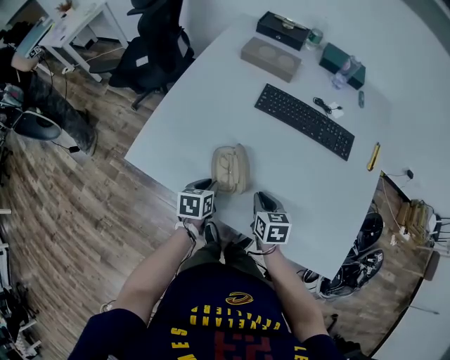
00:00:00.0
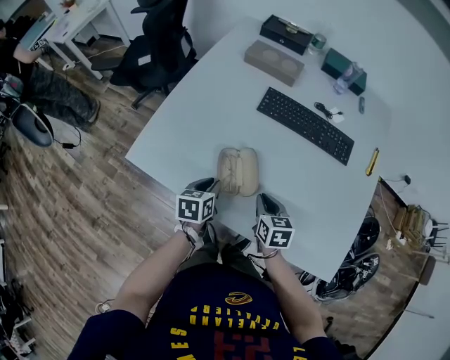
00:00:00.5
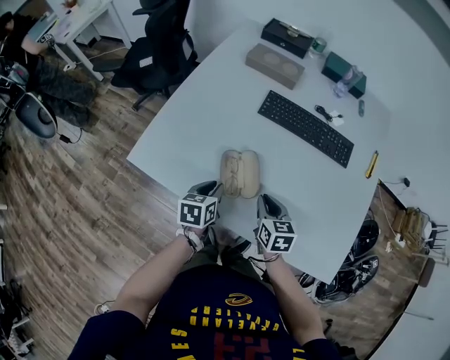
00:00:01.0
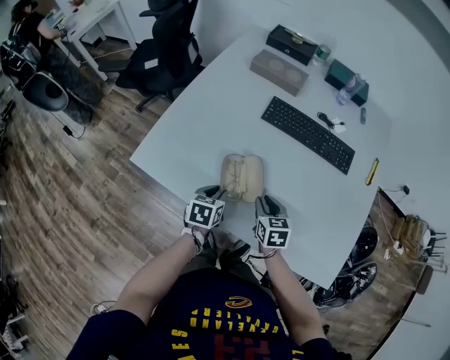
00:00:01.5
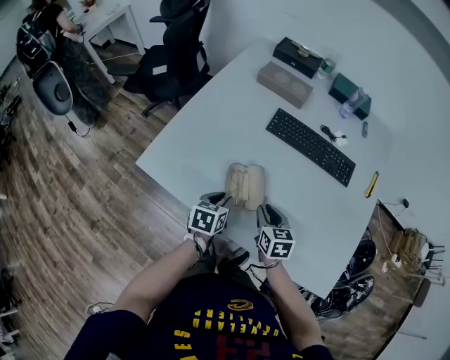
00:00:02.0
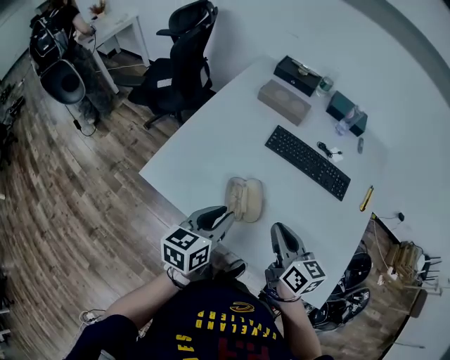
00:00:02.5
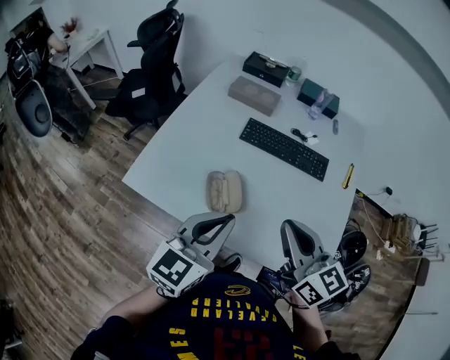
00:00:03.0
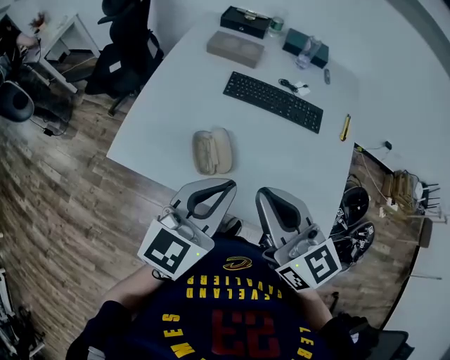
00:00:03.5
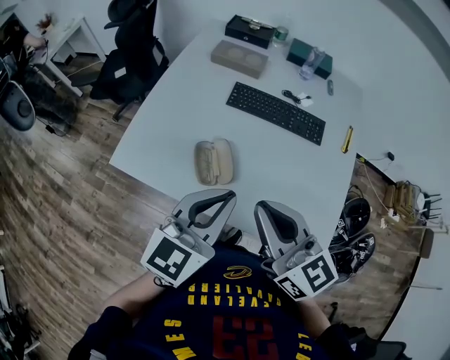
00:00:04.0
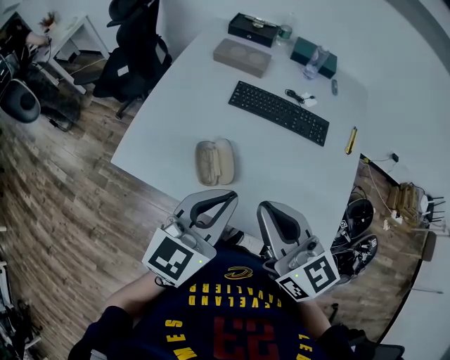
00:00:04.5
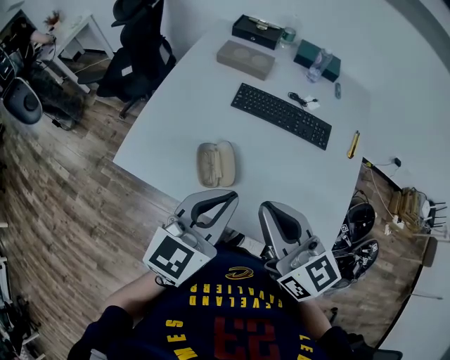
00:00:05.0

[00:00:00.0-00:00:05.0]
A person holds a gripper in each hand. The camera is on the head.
00:00:00.0 to 00:00:02.5: The grippers both shift upward by some 20 cm. The left gripper changes its angle by approximately 30 degrees. The right gripper changes its angle by about 30 degrees.
00:00:02.5 to 00:00:05.0: The right gripper goes approximately 15 cm upward and backward, while the left gripper heads upward and to the right, covering roughly 15 cm, changes its angle by some 30 degrees, and closes its fingers.

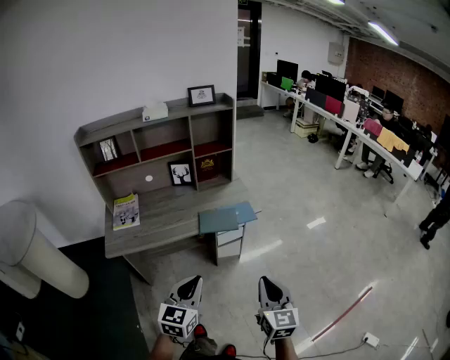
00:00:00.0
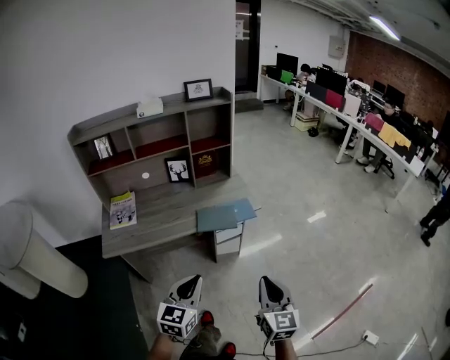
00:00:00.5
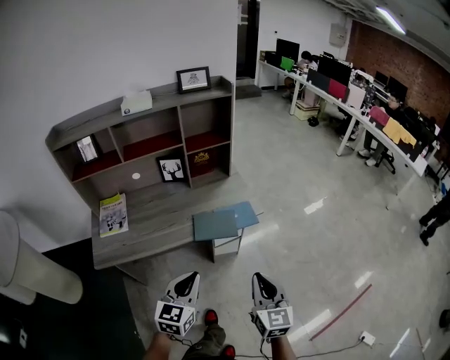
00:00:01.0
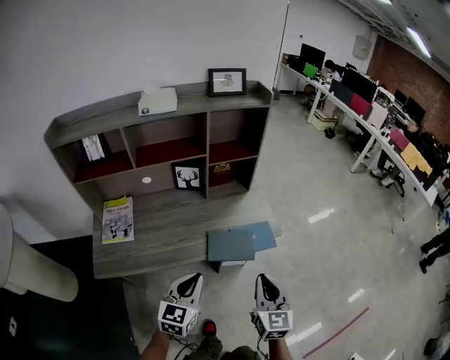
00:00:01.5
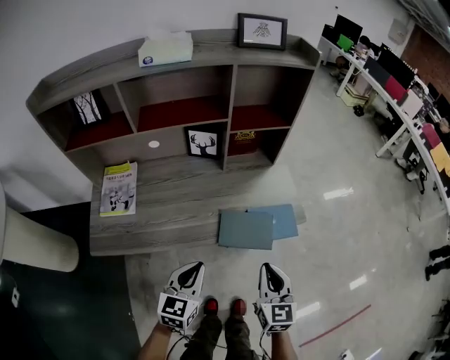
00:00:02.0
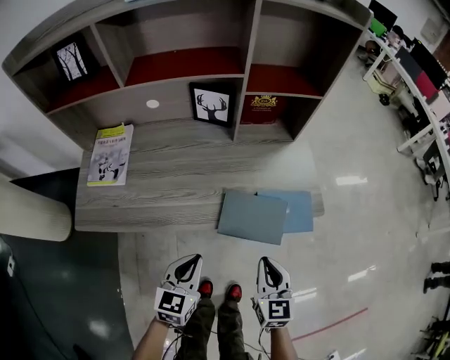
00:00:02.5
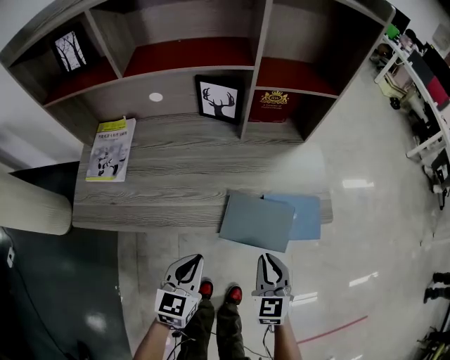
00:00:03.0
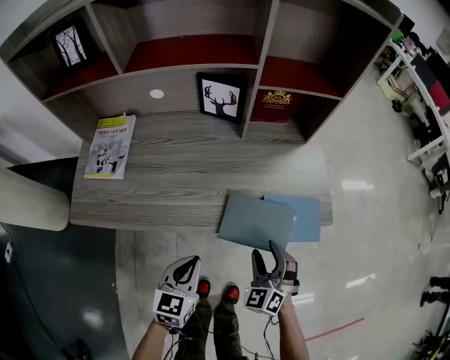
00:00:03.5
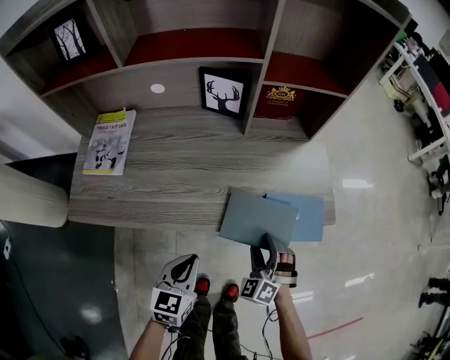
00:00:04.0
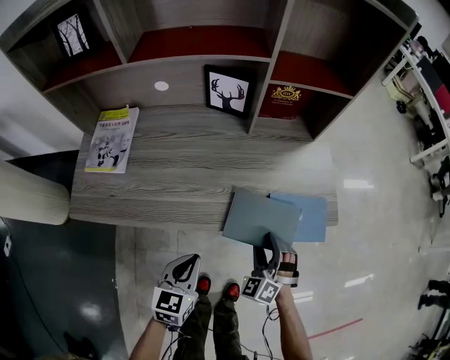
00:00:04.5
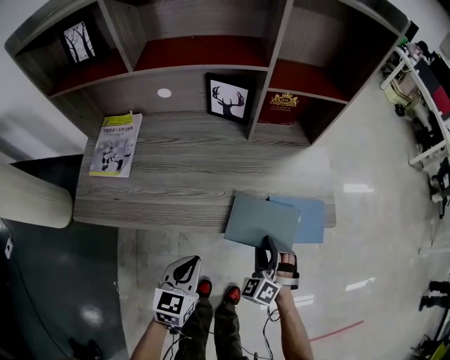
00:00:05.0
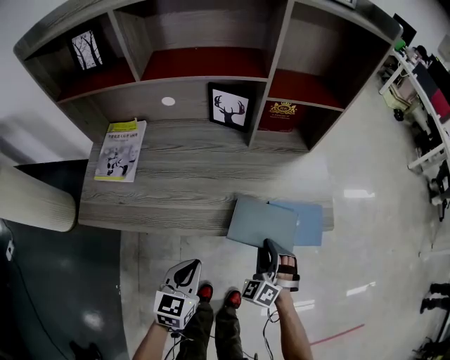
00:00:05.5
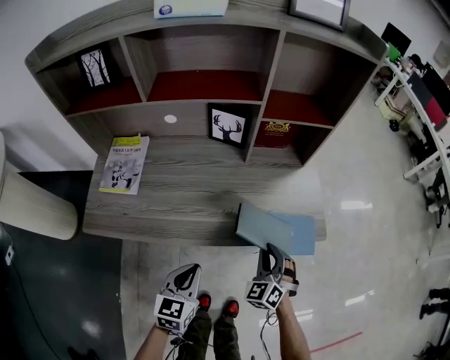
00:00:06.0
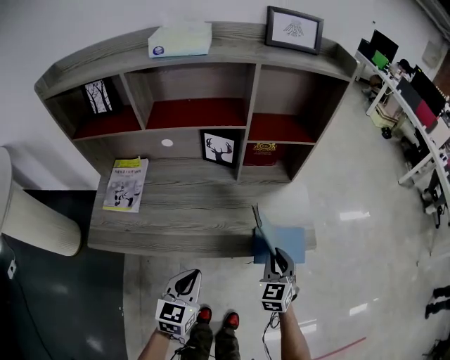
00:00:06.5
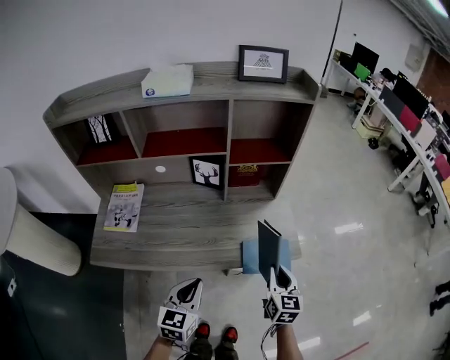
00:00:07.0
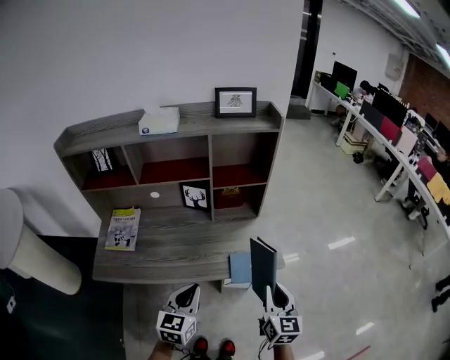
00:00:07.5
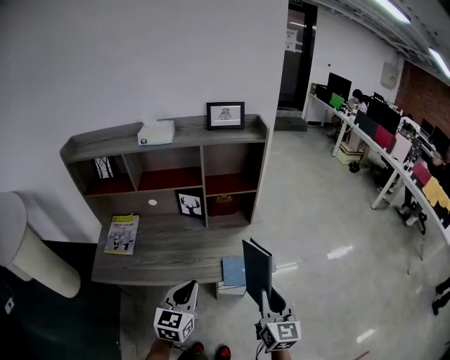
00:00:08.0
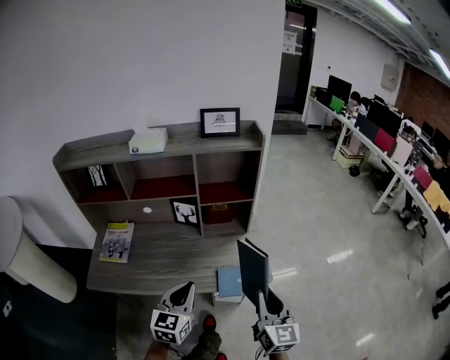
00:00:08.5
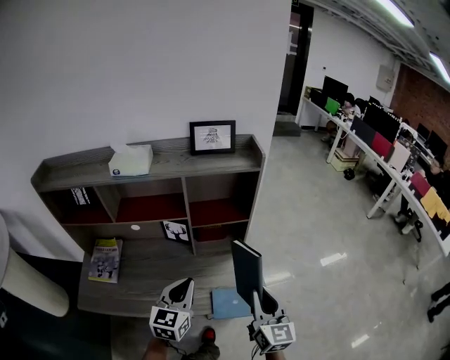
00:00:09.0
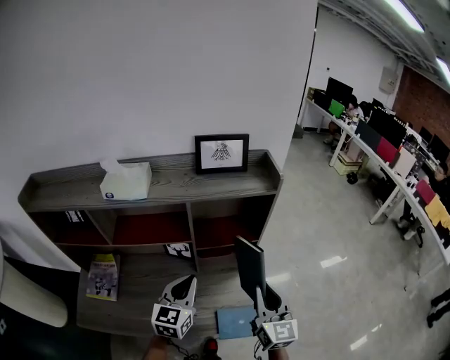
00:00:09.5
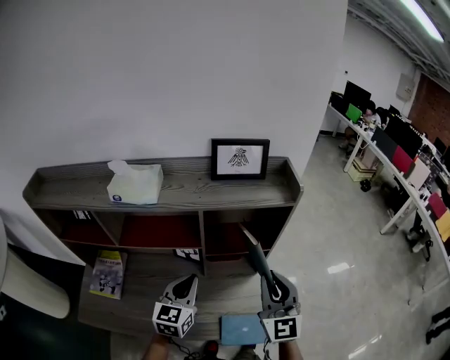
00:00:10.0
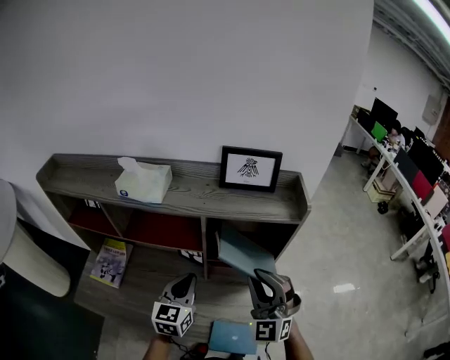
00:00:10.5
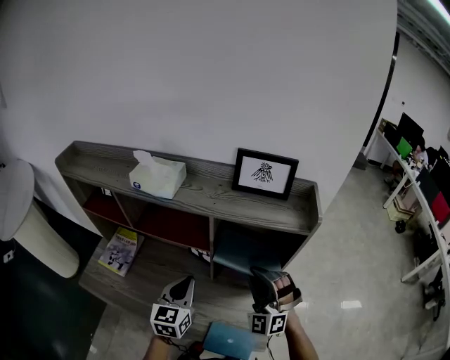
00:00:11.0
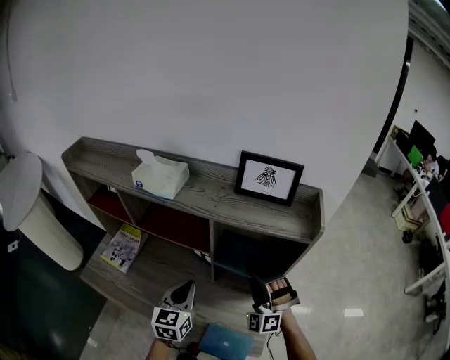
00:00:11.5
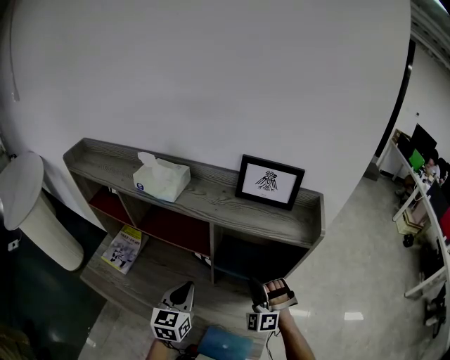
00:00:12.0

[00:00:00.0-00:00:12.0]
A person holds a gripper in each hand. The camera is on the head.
00:00:00.0 to 00:00:02.0: The two grippers go roughly 30 cm forward and downward.
00:00:02.0 to 00:00:04.0: Both grippers travel together downward, about 20 cm. The right gripper rotates around the line of its fingers by about 60 degrees, counterclockwise from behind, and opens its fingers.
00:00:04.0 to 00:00:06.0: Both grippers move upward, some 5 cm. The right gripper closes.
00:00:06.0 to 00:00:08.0: The grippers both shift upward and to the right by some 30 cm. The right gripper rotates around the line of its fingers by some 50 degrees, clockwise from behind.
00:00:08.0 to 00:00:10.0: Both grippers travel together forward, approximately 30 cm. The right gripper swivels roughly 30 degrees.
00:00:10.0 to 00:00:12.0: The right gripper moves downward and forward, some 15 cm, and twists roughly 60 degrees counterclockwise, seen from behind, while the left gripper turns by roughly 30 degrees.

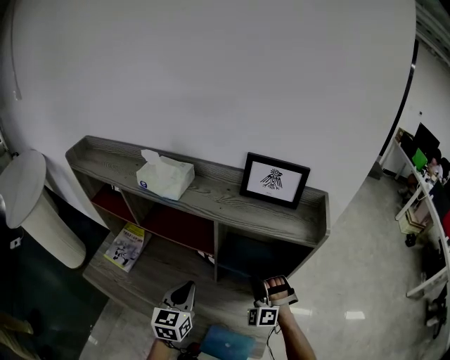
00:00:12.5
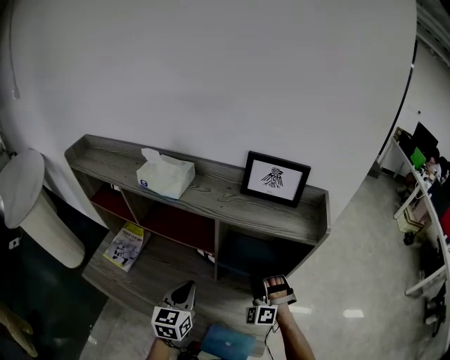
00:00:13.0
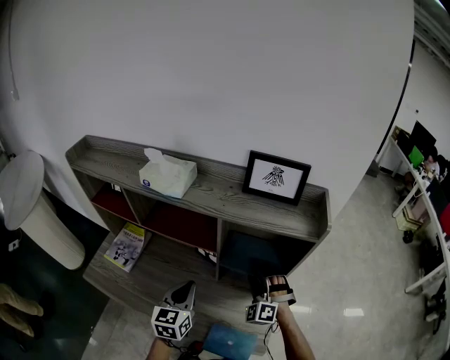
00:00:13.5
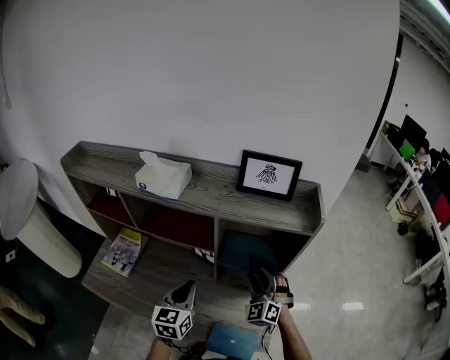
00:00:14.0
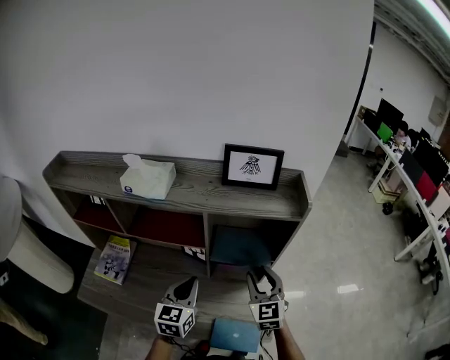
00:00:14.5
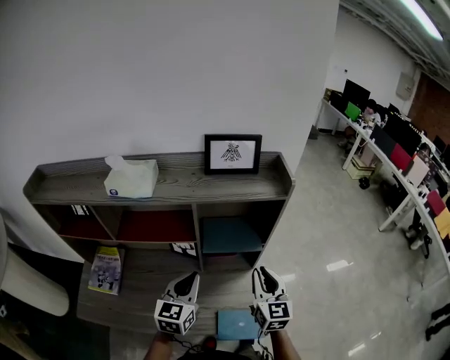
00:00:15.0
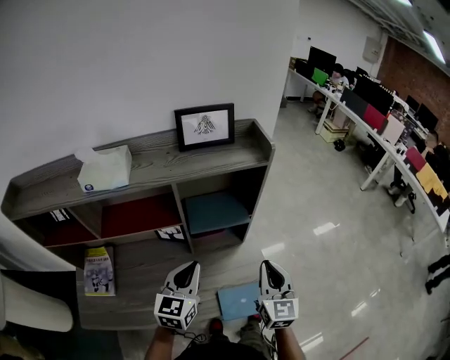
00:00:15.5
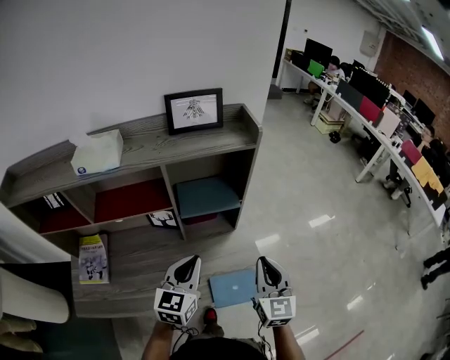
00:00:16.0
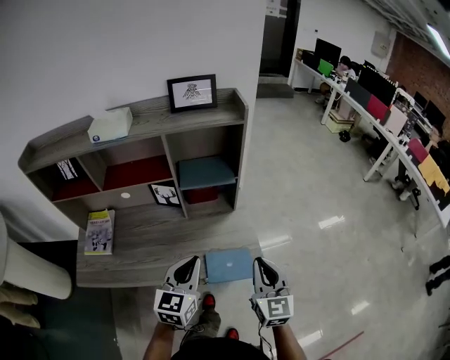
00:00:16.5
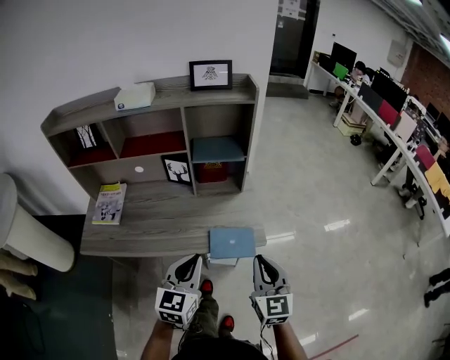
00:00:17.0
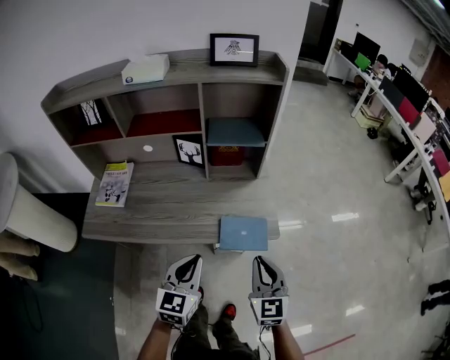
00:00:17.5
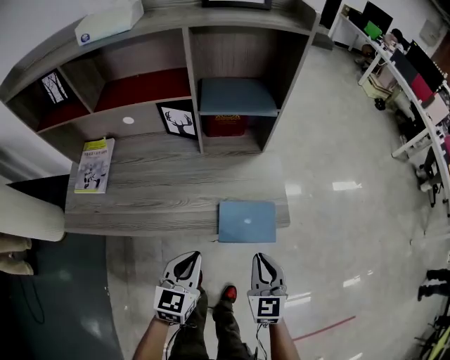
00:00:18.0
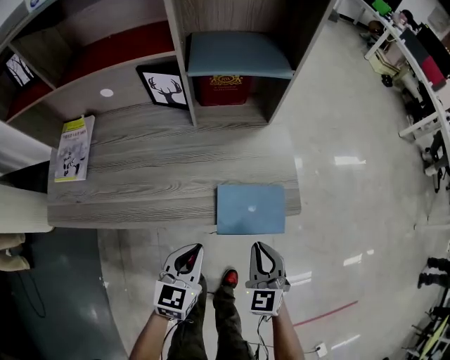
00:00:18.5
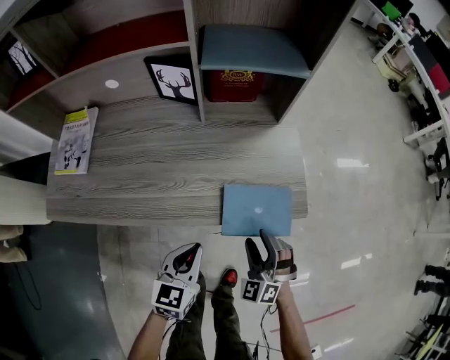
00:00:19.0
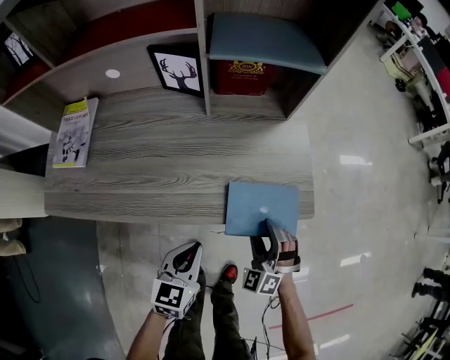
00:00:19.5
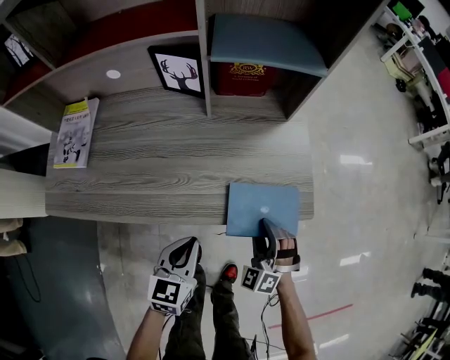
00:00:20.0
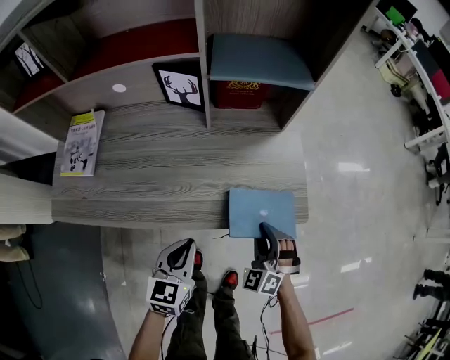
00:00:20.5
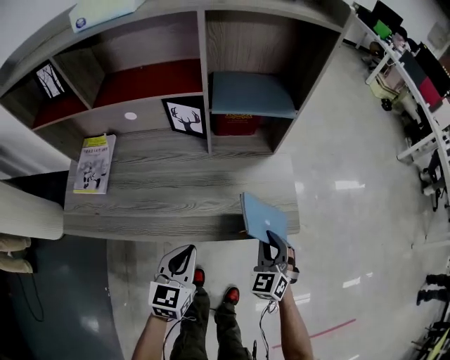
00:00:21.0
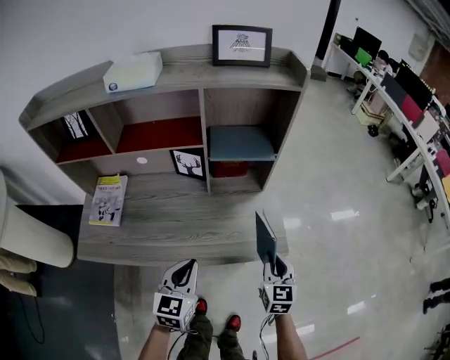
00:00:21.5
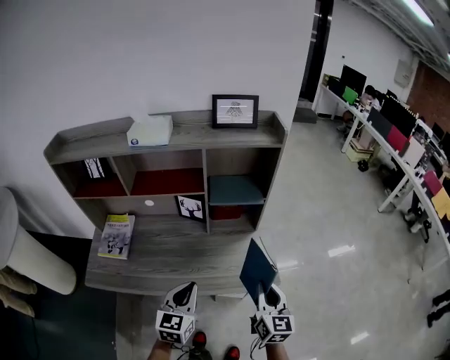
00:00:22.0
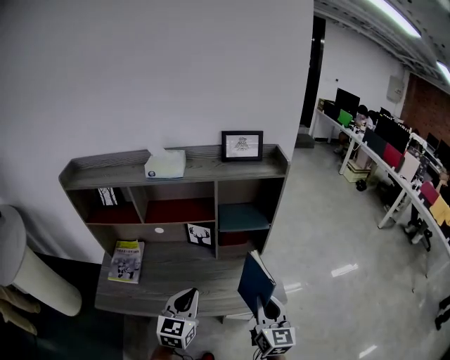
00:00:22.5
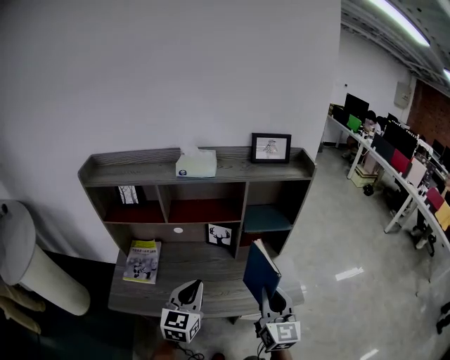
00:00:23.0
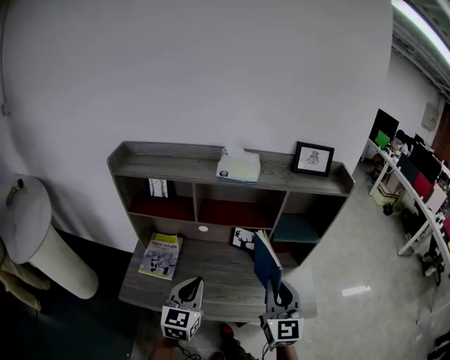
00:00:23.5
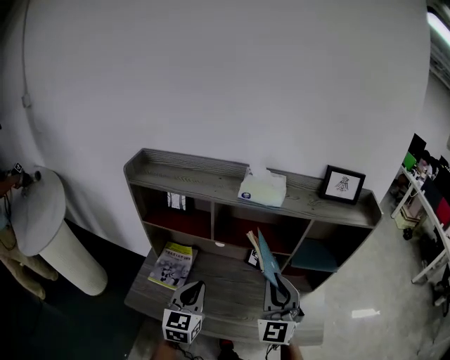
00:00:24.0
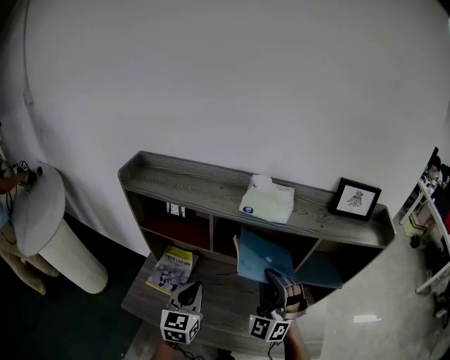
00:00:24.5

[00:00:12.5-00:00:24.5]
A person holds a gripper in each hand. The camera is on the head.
00:00:12.5 to 00:00:14.5: The right gripper travels upward and backward by about 5 cm, rotates around the line of its fingers by about 60 degrees, clockwise from behind, and opens its fingers.
00:00:14.5 to 00:00:16.5: Both grippers travel together backward and to the right, approximately 25 cm. The right gripper changes its angle by roughly 20 degrees, and closes up.
00:00:16.5 to 00:00:18.5: Both grippers travel together downward, about 25 cm. The right gripper rotates roughly 30 degrees.
00:00:18.5 to 00:00:20.5: The right gripper moves forward, some 5 cm, rotates about 40 degrees, and opens, then closes again, while the left gripper heads to the left, covering approximately 5 cm.
00:00:20.5 to 00:00:22.5: Both grippers travel together upward, some 30 cm. The left gripper swivels roughly 20 degrees; the right gripper twists roughly 60 degrees clockwise, seen from behind.
00:00:22.5 to 00:00:24.5: The two grippers go roughly 30 cm to the left and forward. The right gripper twists about 70 degrees counterclockwise, seen from behind; the left gripper swivels approximately 20 degrees.
